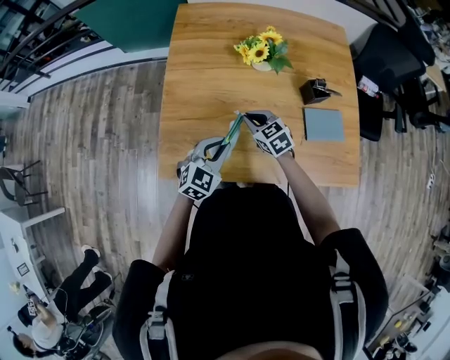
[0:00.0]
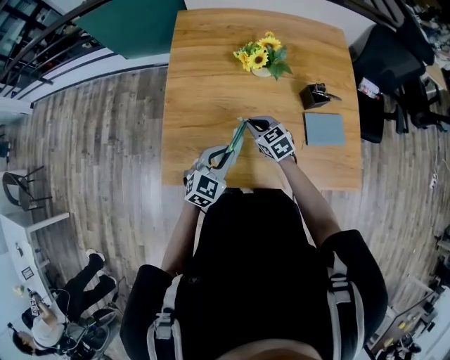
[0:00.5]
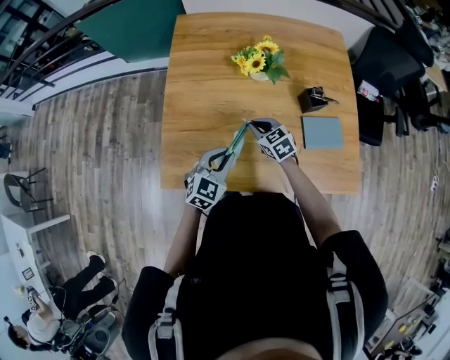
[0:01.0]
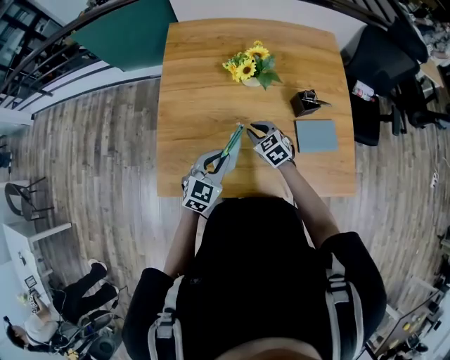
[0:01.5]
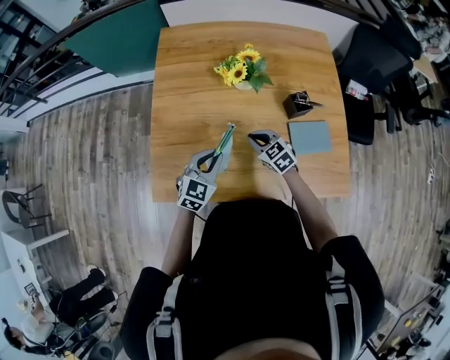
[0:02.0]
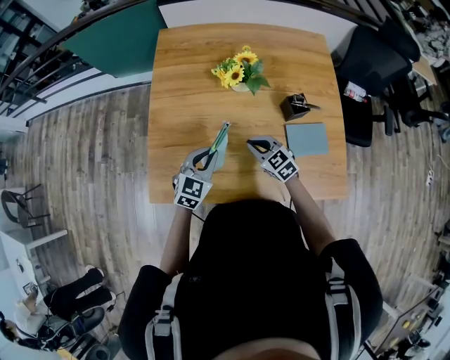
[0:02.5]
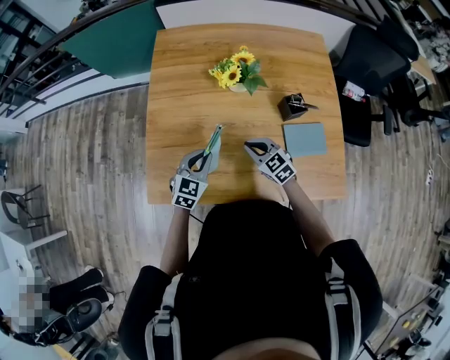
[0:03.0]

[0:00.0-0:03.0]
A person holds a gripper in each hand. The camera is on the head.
0:00.0 to 0:01.5: The right gripper heads to the right, covering roughly 5 cm.
0:01.5 to 0:03.0: The right gripper shifts by some 5 cm.

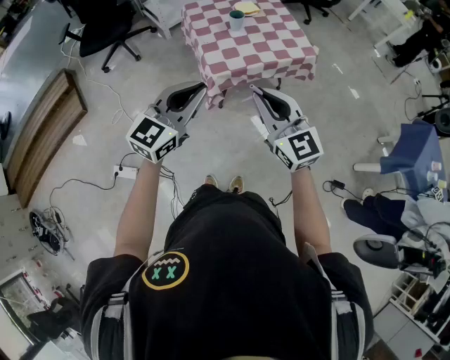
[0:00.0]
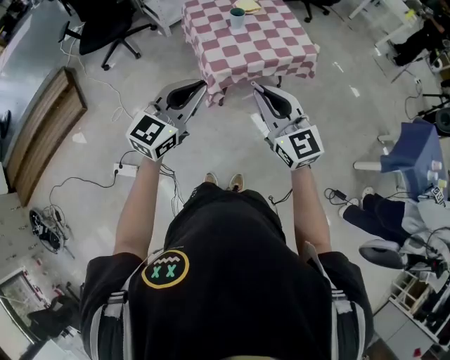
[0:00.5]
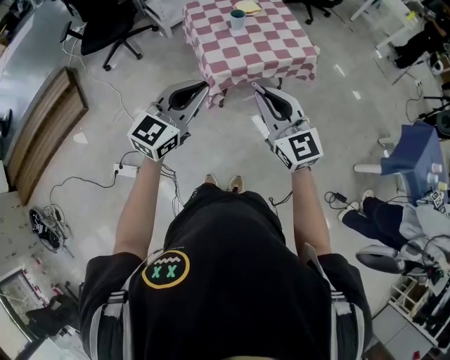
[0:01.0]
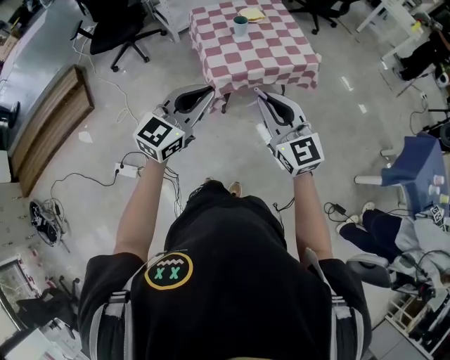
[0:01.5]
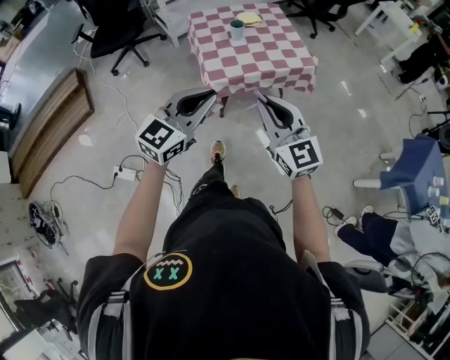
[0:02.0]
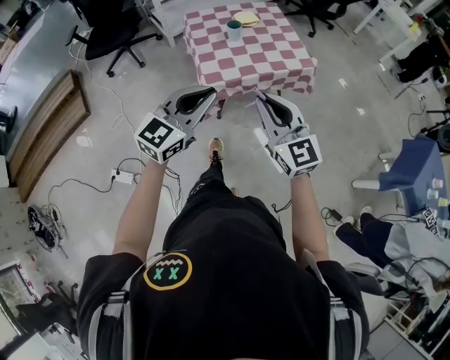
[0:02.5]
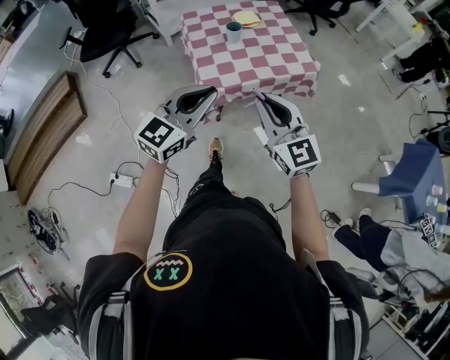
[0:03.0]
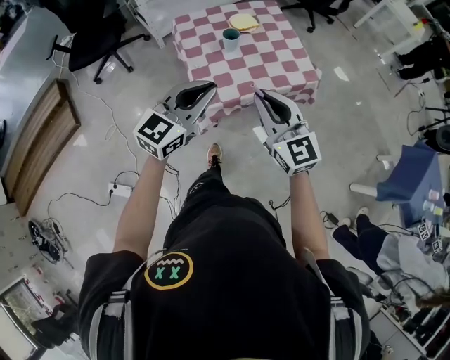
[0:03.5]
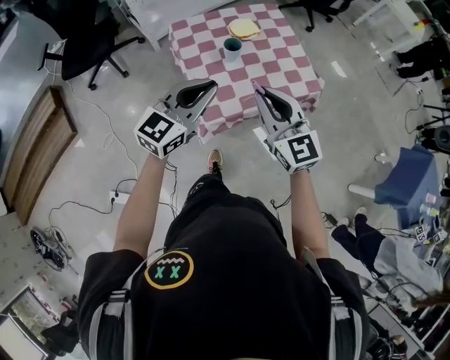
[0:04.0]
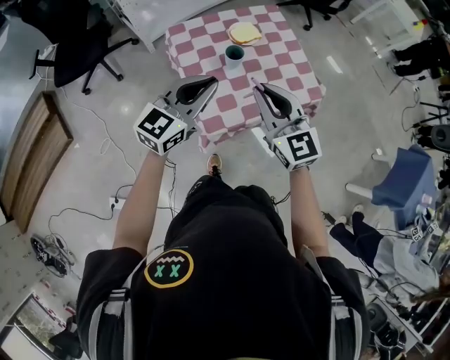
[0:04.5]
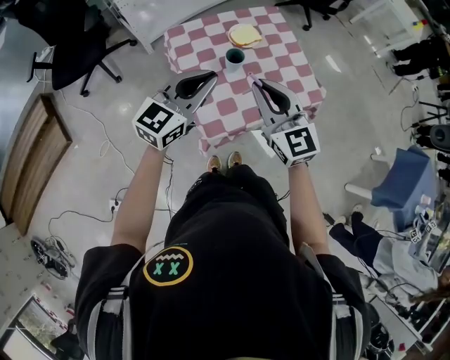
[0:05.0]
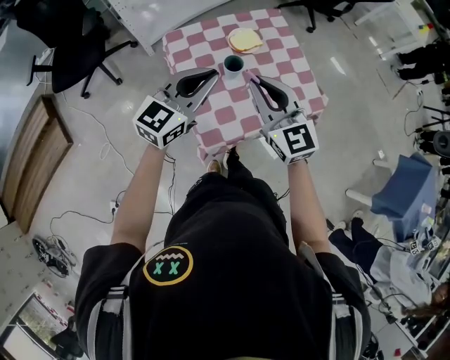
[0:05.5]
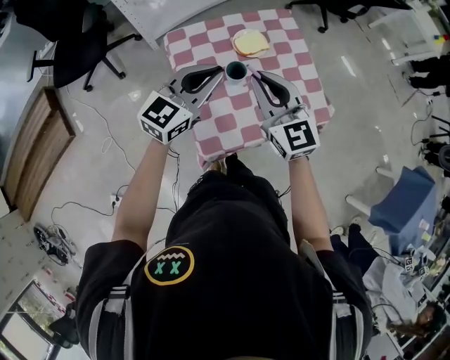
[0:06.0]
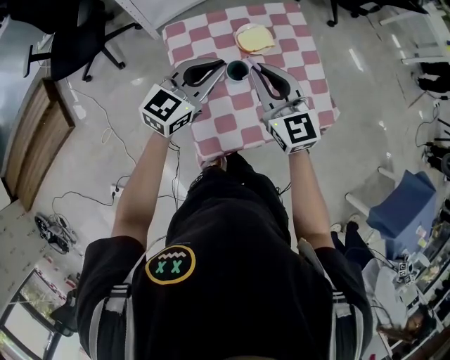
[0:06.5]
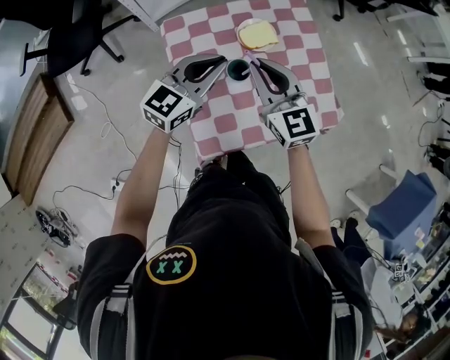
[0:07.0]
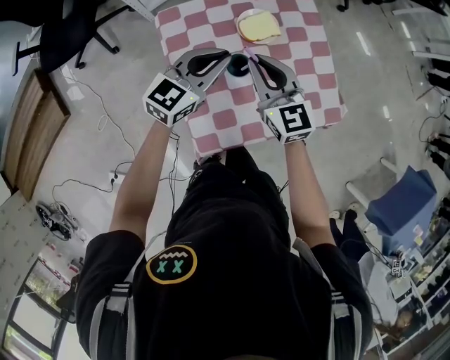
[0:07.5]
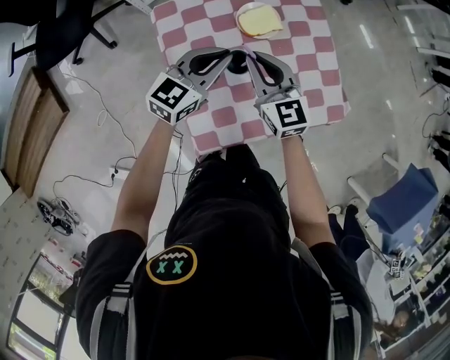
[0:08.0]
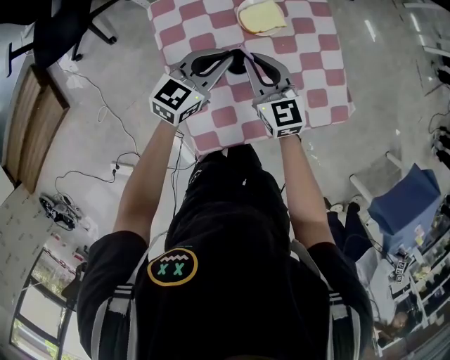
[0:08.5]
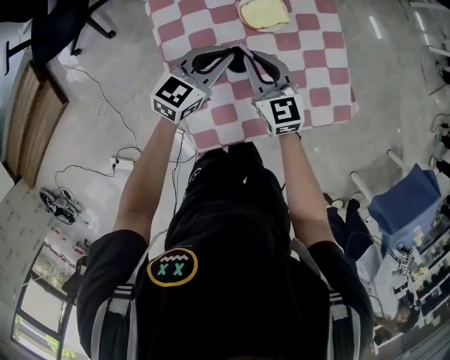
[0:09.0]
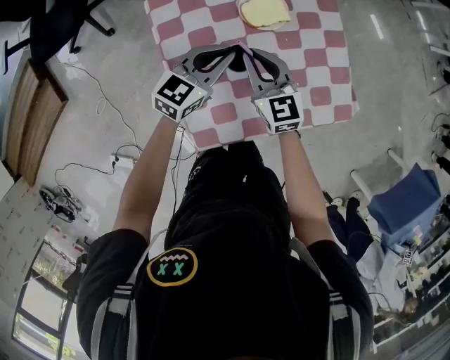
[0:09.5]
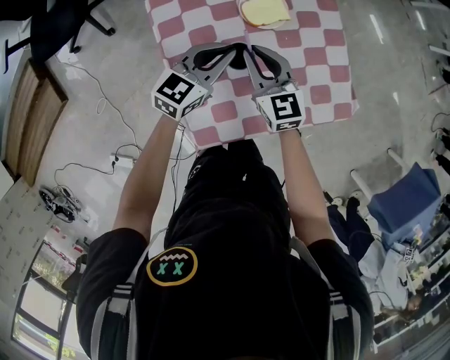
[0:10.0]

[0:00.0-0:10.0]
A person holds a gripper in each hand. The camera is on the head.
0:00.0 to 0:02.0: Both grippers move to the right, about 5 cm.
0:02.0 to 0:04.0: The grippers both shift forward by approximately 30 cm.
0:04.0 to 0:06.0: Both grippers move forward, approximately 25 cm.
0:06.0 to 0:08.0: The grippers both shift downward and forward by about 20 cm.
0:08.0 to 0:10.0: The grippers both shift downward by roughly 5 cm.

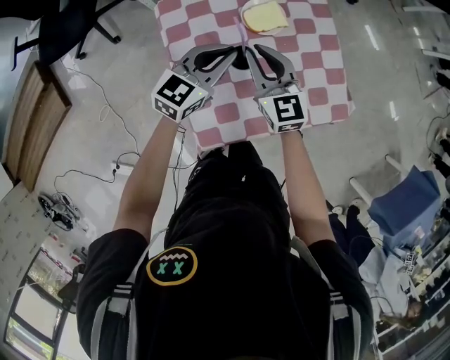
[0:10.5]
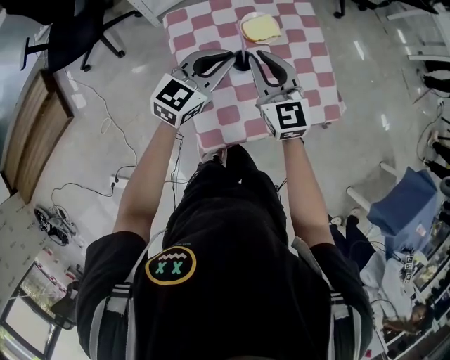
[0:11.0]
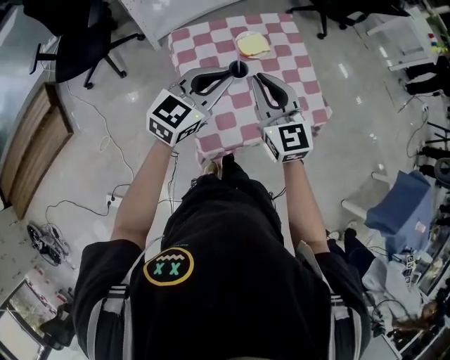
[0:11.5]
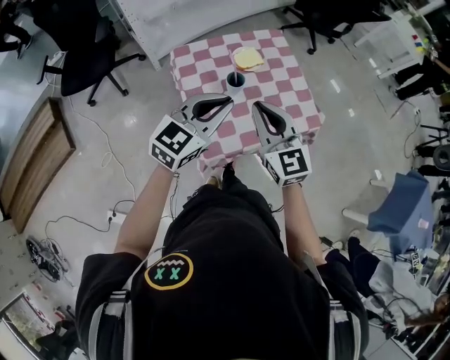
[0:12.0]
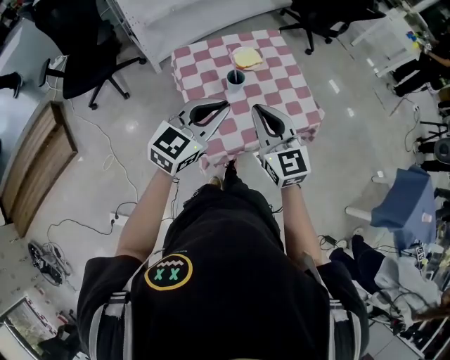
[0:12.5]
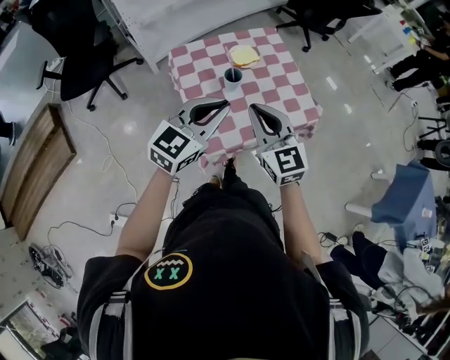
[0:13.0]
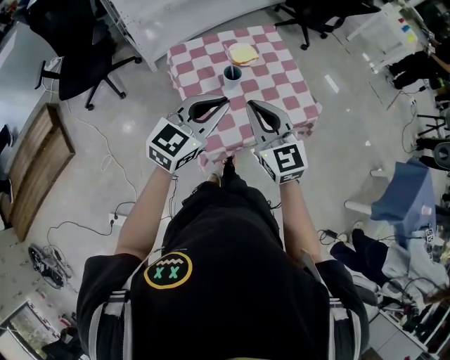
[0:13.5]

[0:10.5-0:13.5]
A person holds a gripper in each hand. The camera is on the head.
0:10.5 to 0:12.0: The grippers both shift backward and upward by approximately 30 cm.
0:12.0 to 0:13.5: The grippers move only a little.

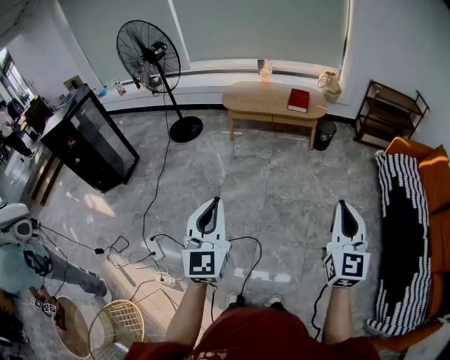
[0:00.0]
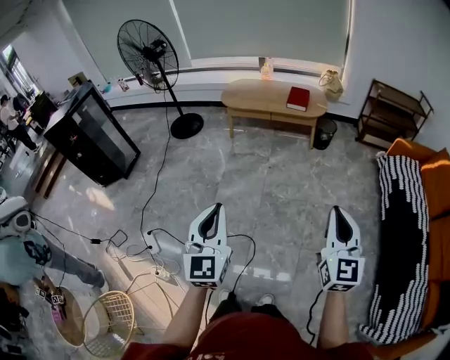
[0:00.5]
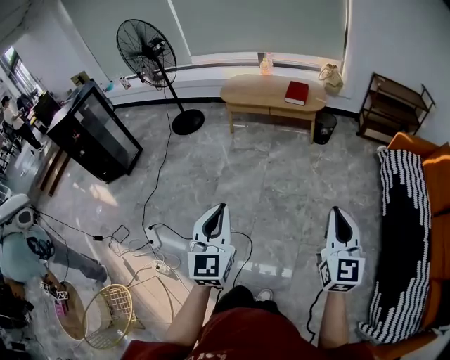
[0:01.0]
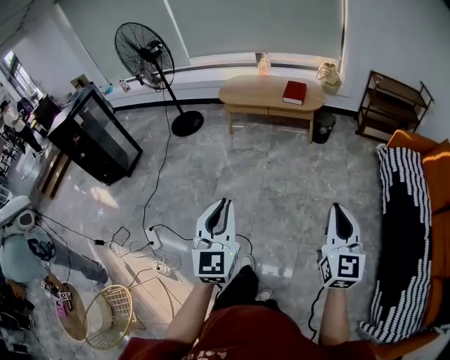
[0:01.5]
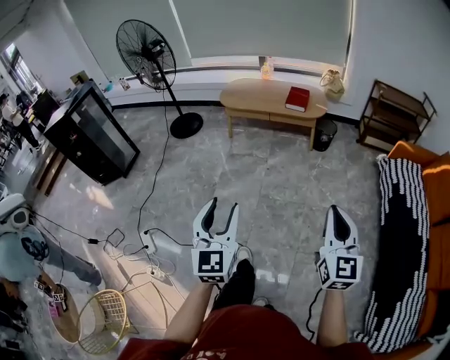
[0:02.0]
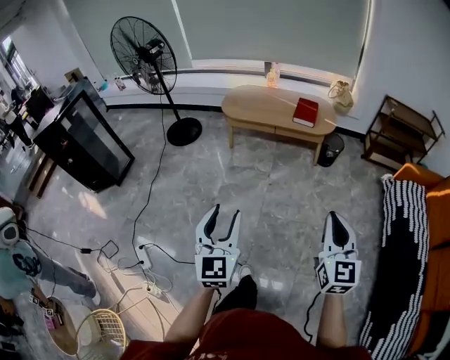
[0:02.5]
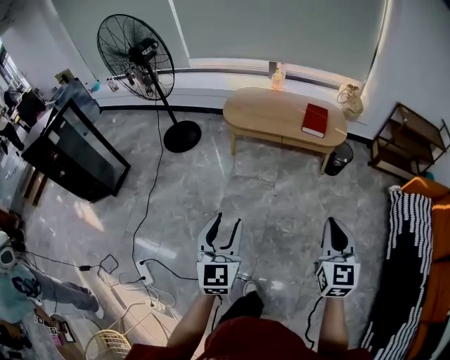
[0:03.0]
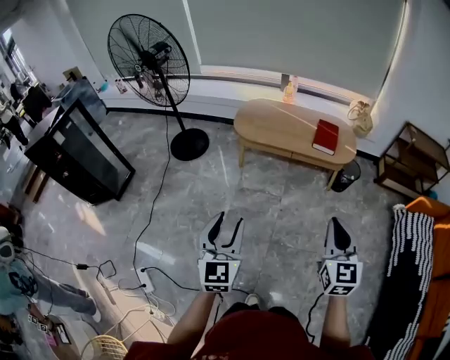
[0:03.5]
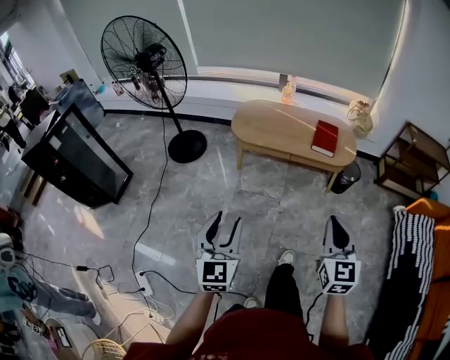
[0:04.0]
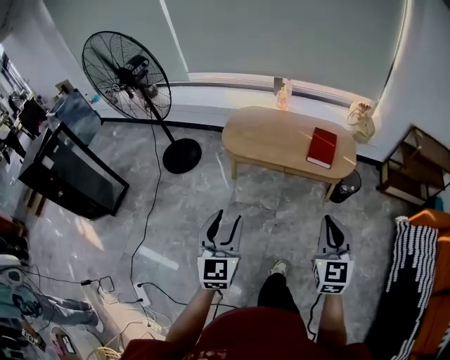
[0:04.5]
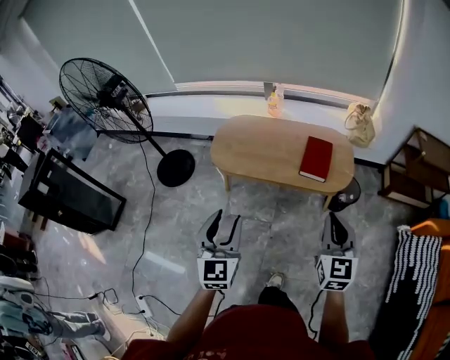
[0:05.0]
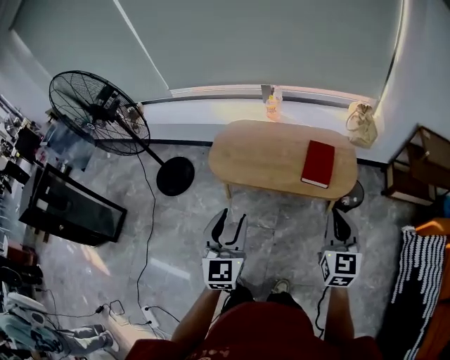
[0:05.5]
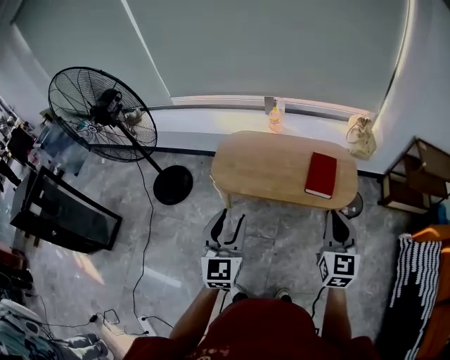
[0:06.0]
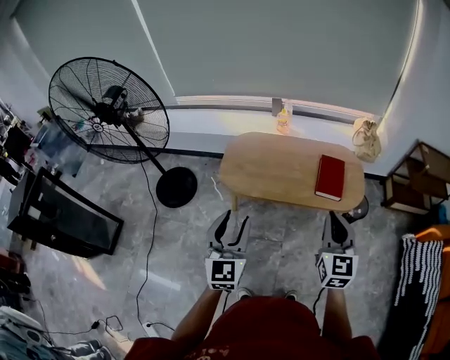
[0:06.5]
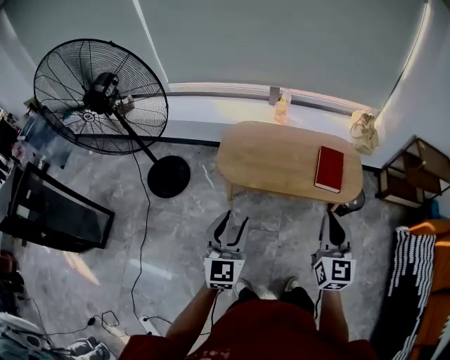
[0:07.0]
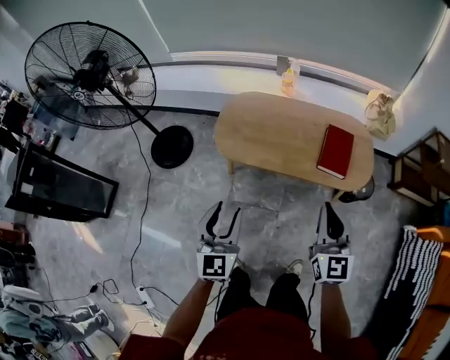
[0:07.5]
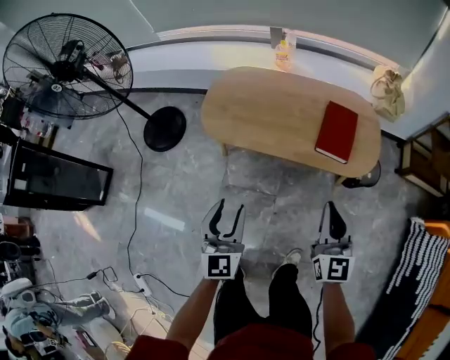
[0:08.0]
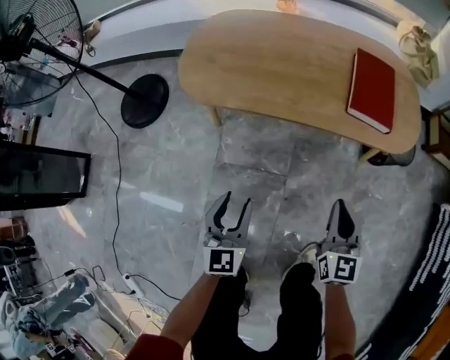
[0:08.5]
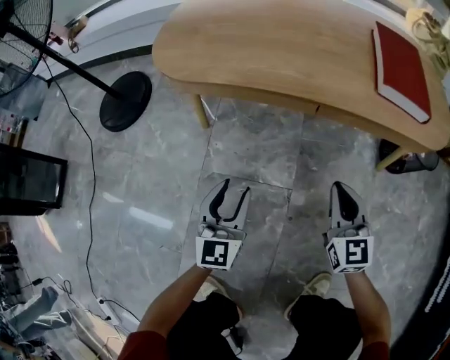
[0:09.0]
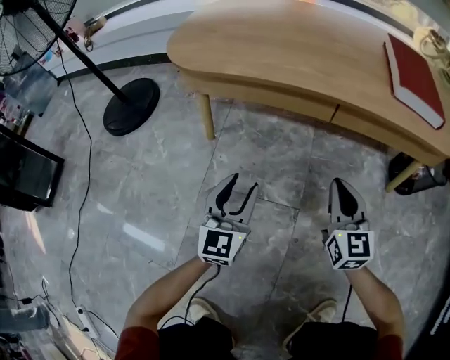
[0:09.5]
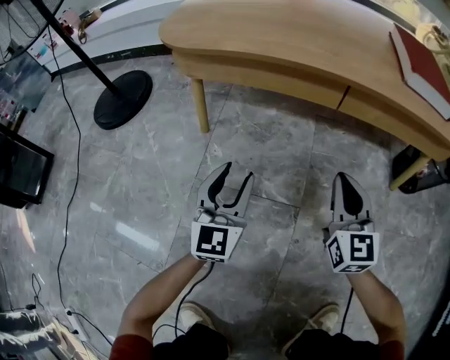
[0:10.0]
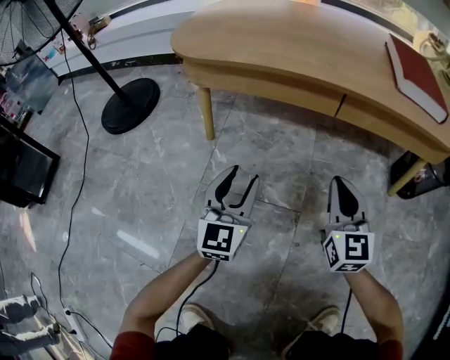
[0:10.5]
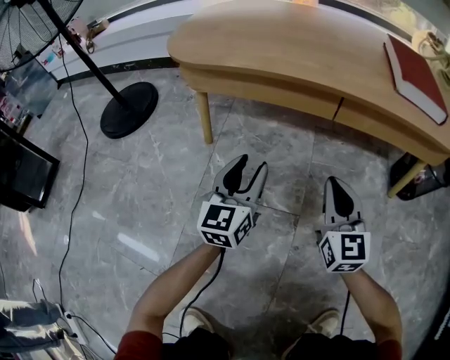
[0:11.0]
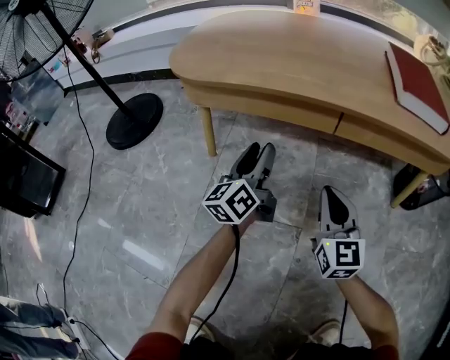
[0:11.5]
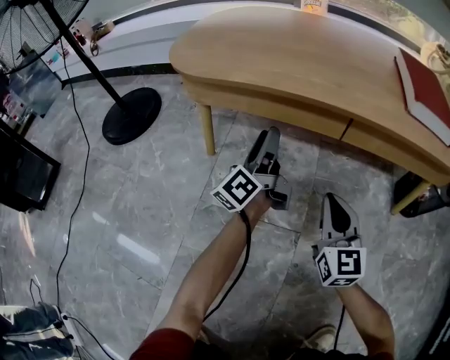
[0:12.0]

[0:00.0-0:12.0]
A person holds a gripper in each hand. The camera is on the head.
0:00.0 to 0:02.0: Both grippers travel together to the right, approximately 10 cm. The left gripper opens up.
0:02.0 to 0:04.0: Both grippers are carried forward, about 50 cm.
0:04.0 to 0:06.0: Both grippers travel together forward, approximately 40 cm.
0:06.0 to 0:08.0: Both grippers move downward, about 20 cm.
0:08.0 to 0:10.0: Both grippers move downward, approximately 60 cm.
0:10.0 to 0:12.0: The left gripper is displaced forward by approximately 15 cm, and rolls counterclockwise, seen from behind, by approximately 70 degrees.
